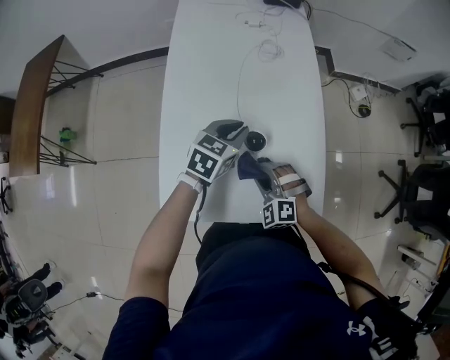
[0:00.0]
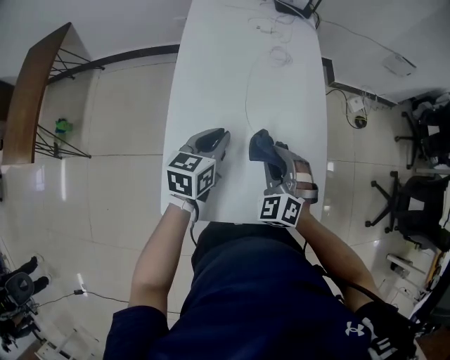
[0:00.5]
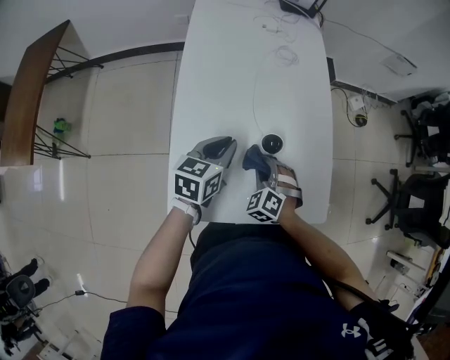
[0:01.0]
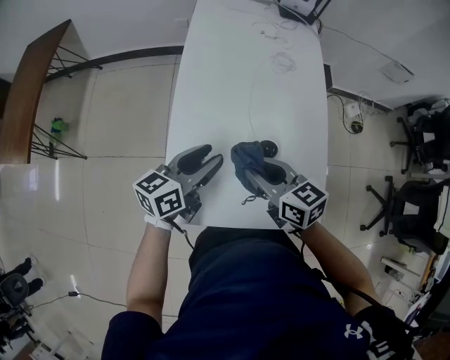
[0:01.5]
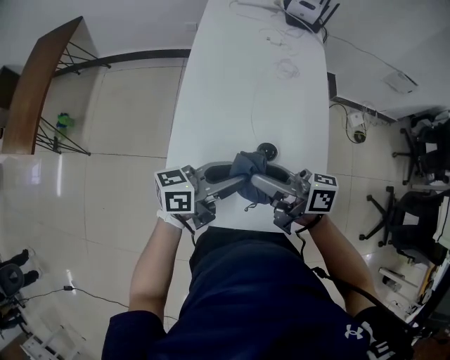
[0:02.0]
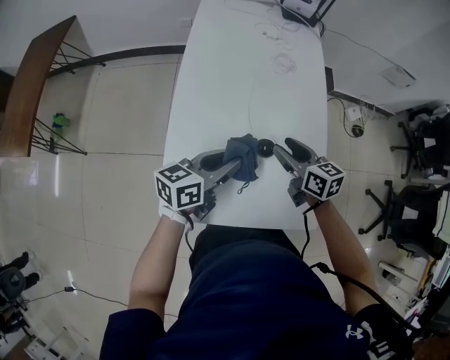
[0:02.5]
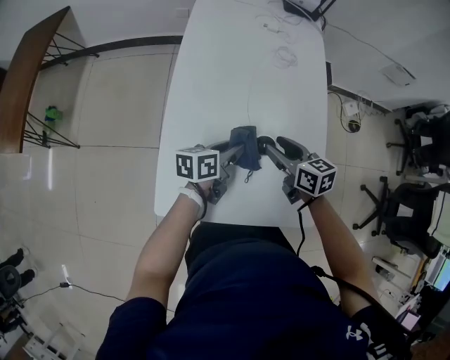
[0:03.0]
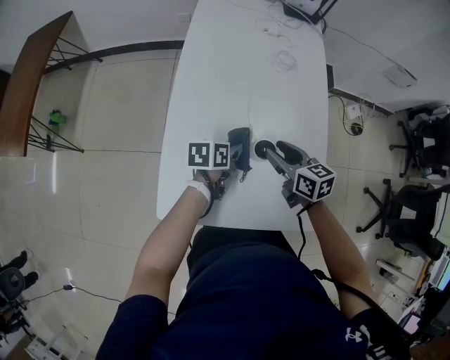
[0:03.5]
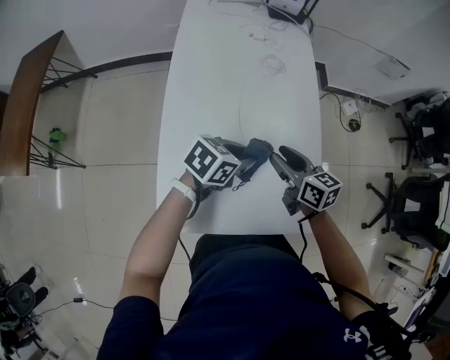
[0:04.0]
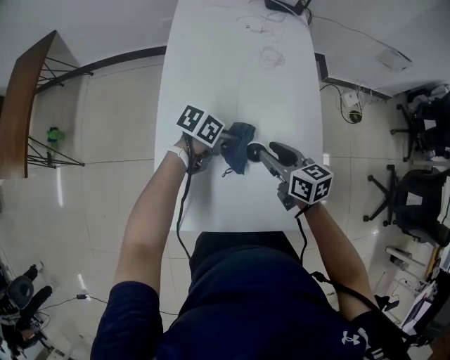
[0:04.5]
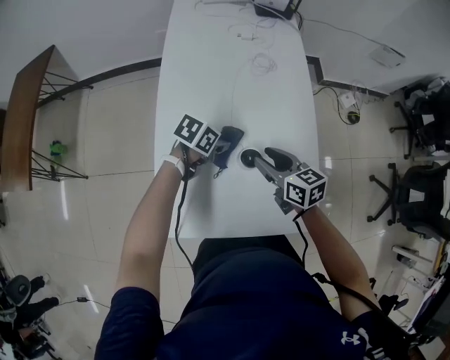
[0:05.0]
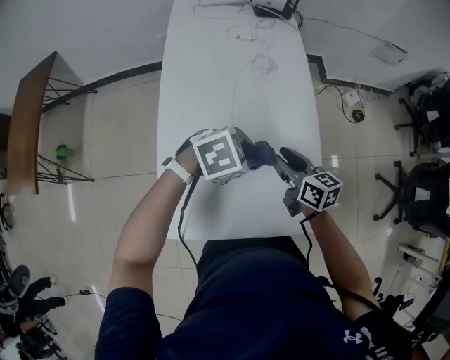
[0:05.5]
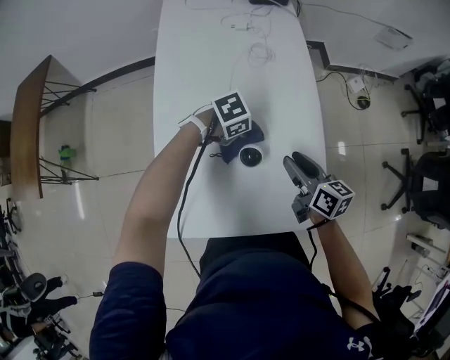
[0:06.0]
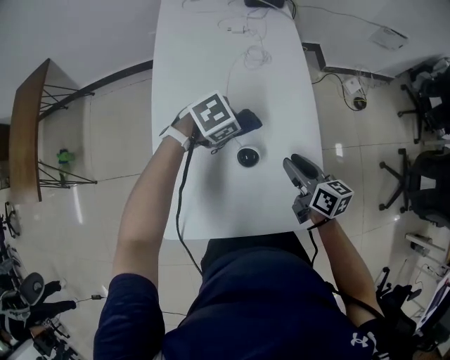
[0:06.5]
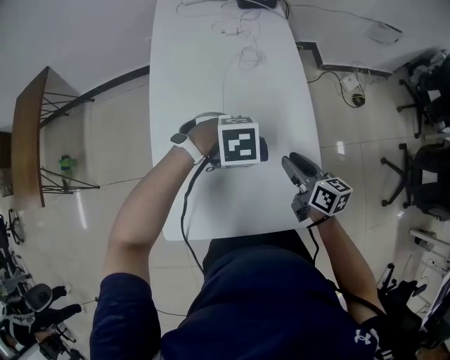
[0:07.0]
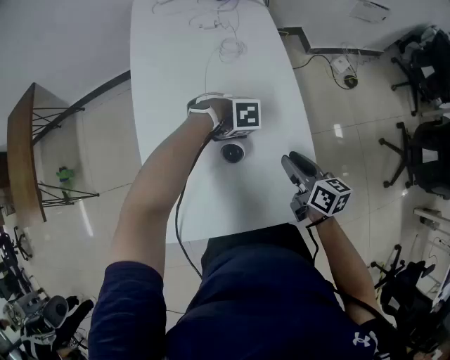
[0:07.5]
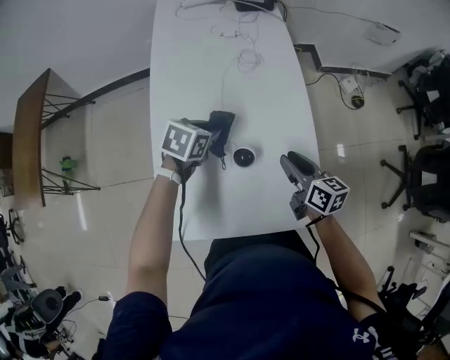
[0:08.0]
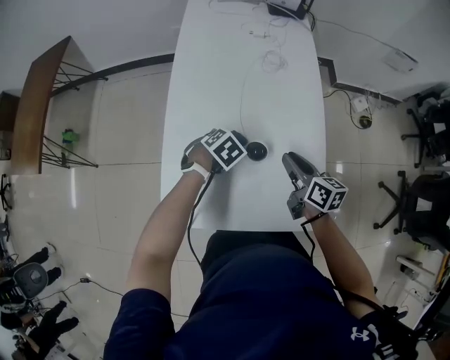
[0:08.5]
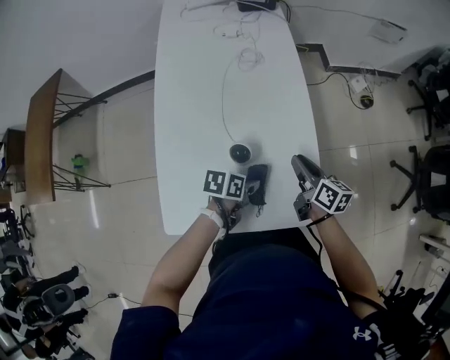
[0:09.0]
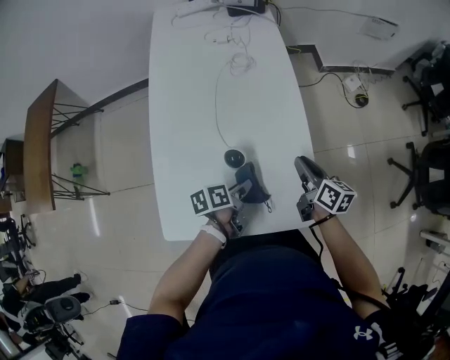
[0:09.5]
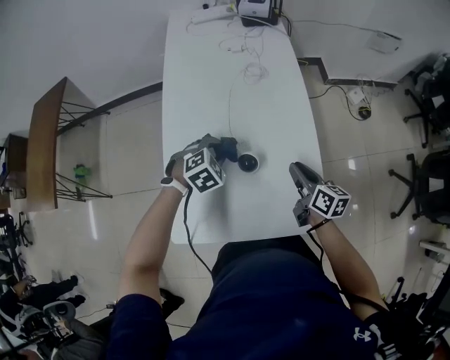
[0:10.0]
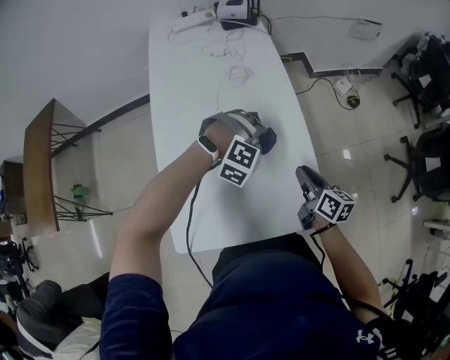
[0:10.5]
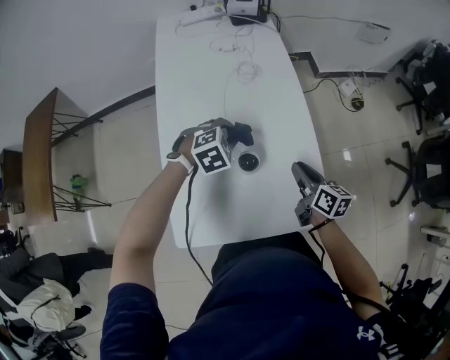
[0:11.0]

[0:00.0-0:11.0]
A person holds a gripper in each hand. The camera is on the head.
0:00.0 to 0:02.0: The left gripper moves some 15 cm, and points its fingers about 40 degrees further upward, while the right gripper moves up and down over roughly 20 cm, changing direction 2 times, twists about 90 degrees clockwise, seen from behind, and opens.
0:02.0 to 0:03.5: Both grippers travel together downward, some 15 cm. The left gripper points its fingers about 40 degrees further downward. The right gripper tilts its fingers about 30 degrees downward.
0:03.5 to 0:05.5: The right gripper ends up some 5 cm from where it was; the left gripper goes up and down, about 10 cm each way, reversing 2 times, and twists roughly 70 degrees clockwise, seen from behind.
0:05.5 to 0:07.5: The right gripper changes place by about 10 cm. The left gripper swings up and down, some 15 cm each way, with 2 reversals, and swivels some 40 degrees.
0:07.5 to 0:09.0: The left gripper moves some 10 cm upward and comes back, and rotates around the line of its fingers by about 80 degrees, counterclockwise from behind.
0:09.0 to 0:11.0: The left gripper heads forward, to the left and upward, covering roughly 20 cm, and rolls clockwise, seen from behind, by about 80 degrees.

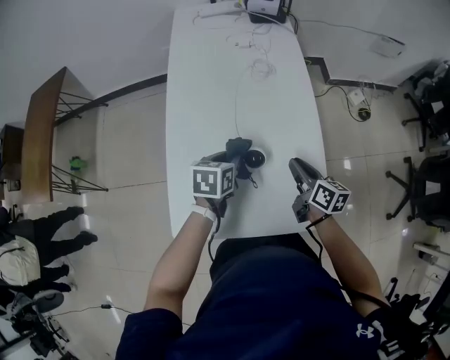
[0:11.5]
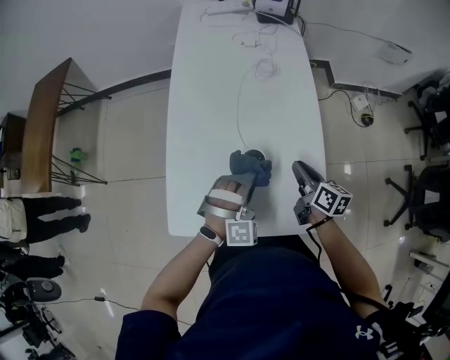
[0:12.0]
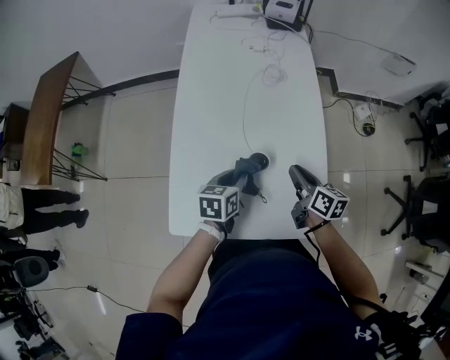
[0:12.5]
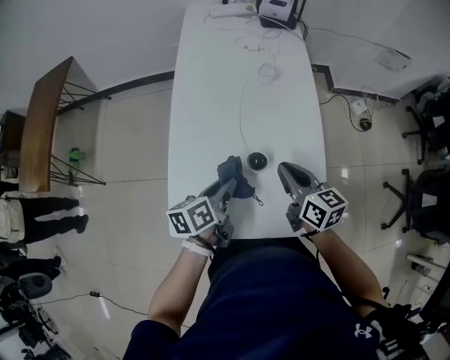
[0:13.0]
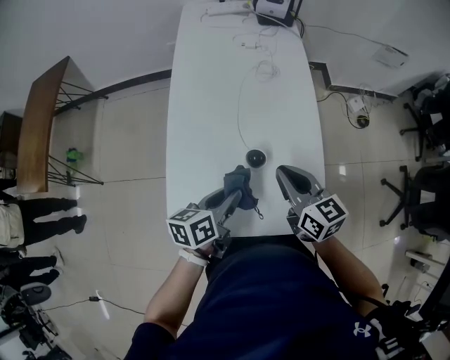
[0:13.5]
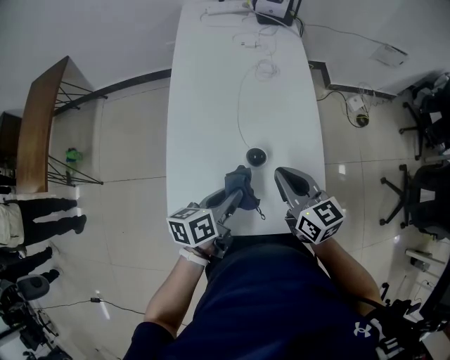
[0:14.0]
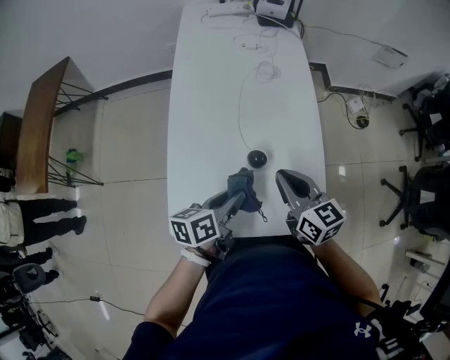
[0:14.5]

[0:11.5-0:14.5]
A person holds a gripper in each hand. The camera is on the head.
0:11.5 to 0:13.0: The right gripper goes approximately 10 cm upward and to the left; the left gripper heads backward, covering approximately 5 cm, and swivels approximately 40 degrees.
0:13.0 to 0:14.5: The grippers stay close to where they were, moving slightly.

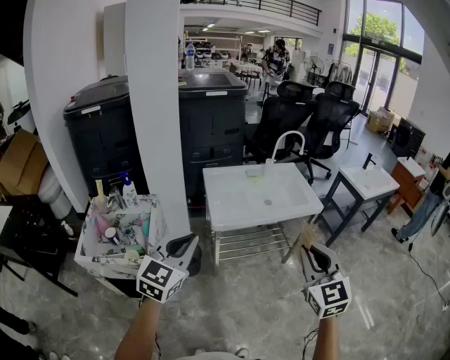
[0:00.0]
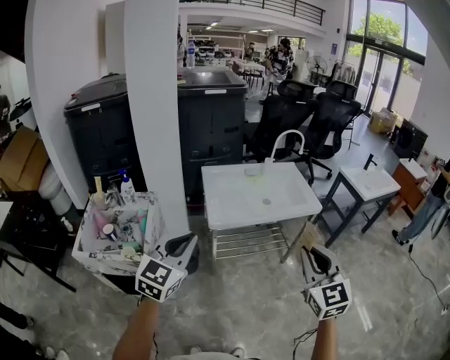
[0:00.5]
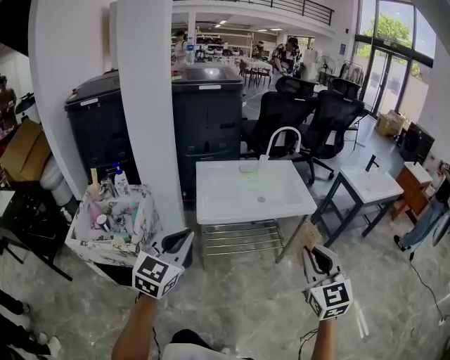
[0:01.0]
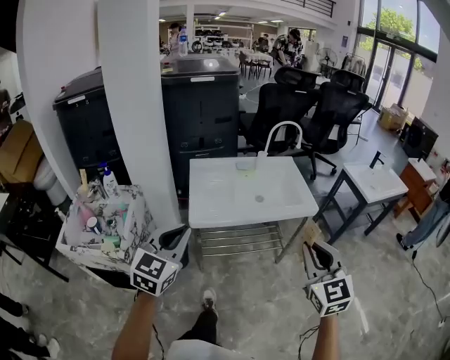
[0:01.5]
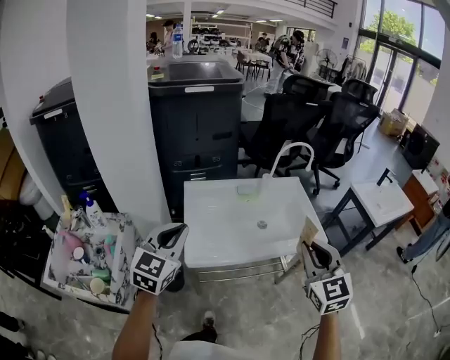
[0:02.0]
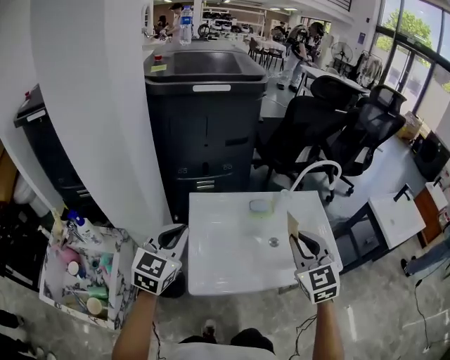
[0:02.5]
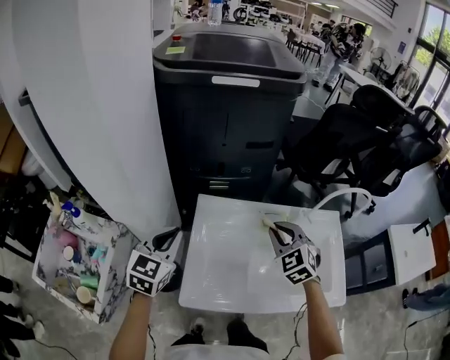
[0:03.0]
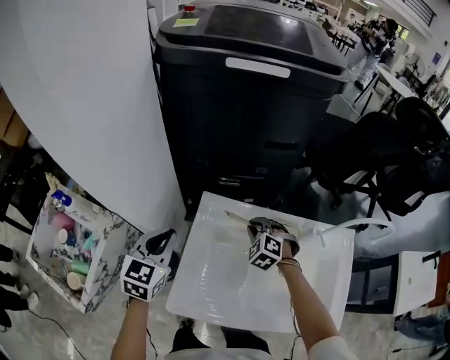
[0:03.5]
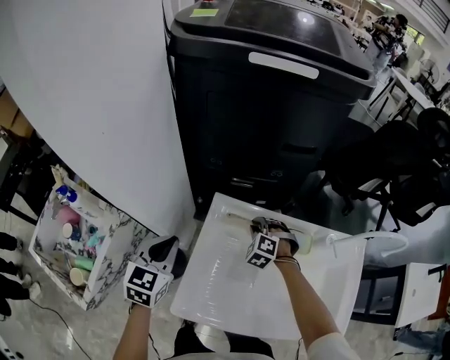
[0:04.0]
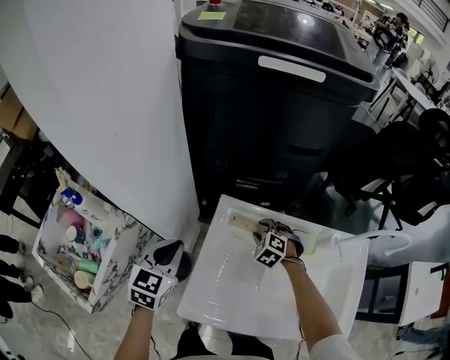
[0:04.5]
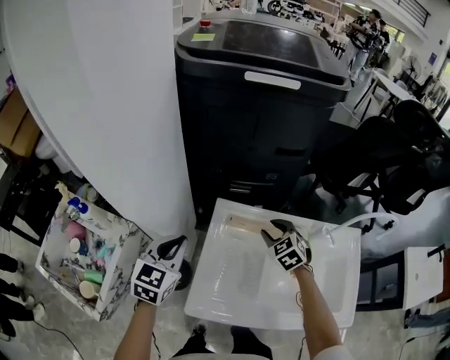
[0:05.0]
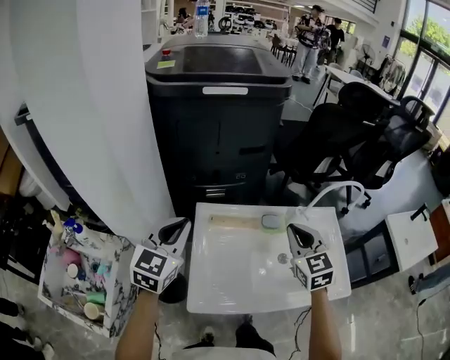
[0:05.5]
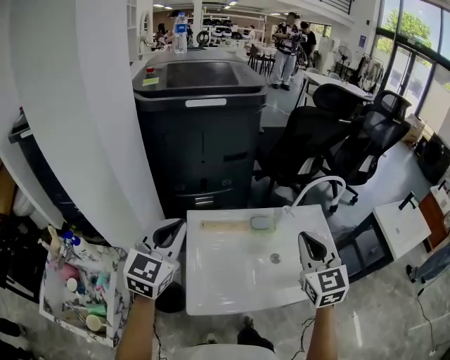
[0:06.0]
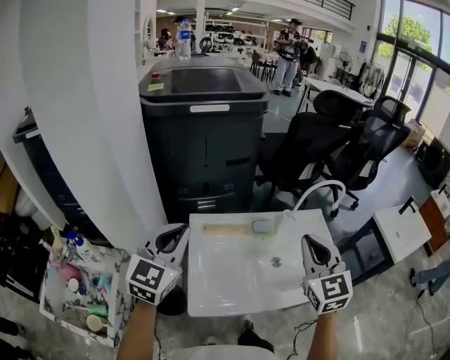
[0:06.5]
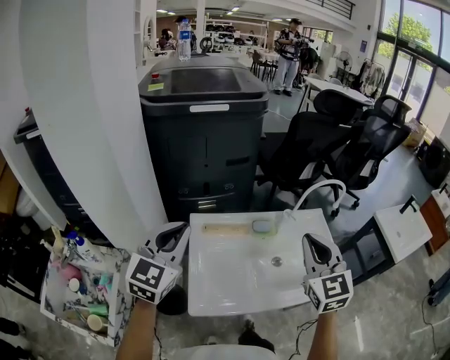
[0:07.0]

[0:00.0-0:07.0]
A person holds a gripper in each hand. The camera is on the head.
0:00.0 to 0:02.0: The grippers both shift forward by approximately 30 cm.
0:02.0 to 0:03.5: The left gripper moves forward and downward, roughly 30 cm, and swivels some 30 degrees. The right gripper travels forward and downward by some 60 cm, and angles its fingers downward, by some 40 degrees.
0:03.5 to 0:05.0: The right gripper swivels about 20 degrees, and opens its fingers.
0:05.0 to 0:07.0: The right gripper is displaced upward, backward and to the right by approximately 40 cm, tilts its fingers some 40 degrees upward, and closes. The left gripper moves upward and to the right, roughly 20 cm, and turns by some 30 degrees.

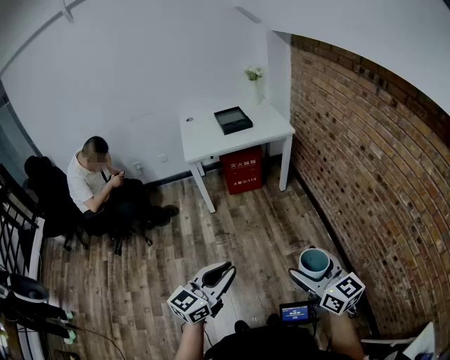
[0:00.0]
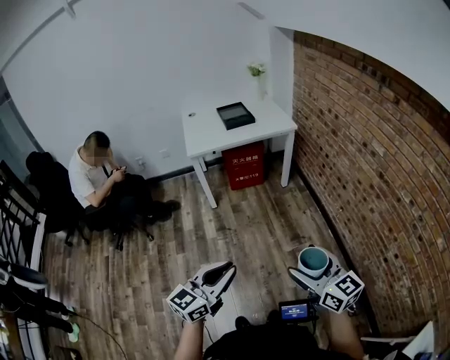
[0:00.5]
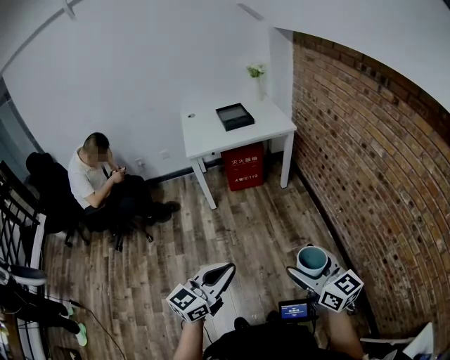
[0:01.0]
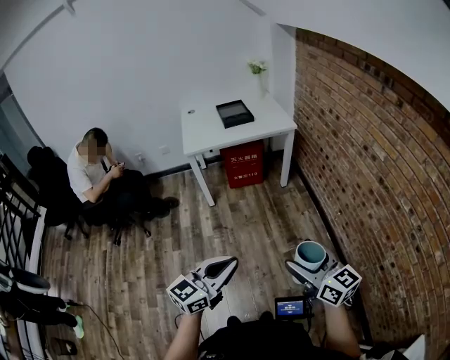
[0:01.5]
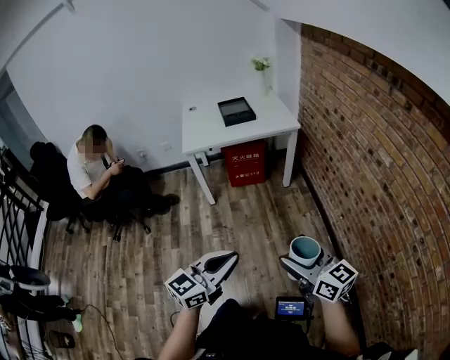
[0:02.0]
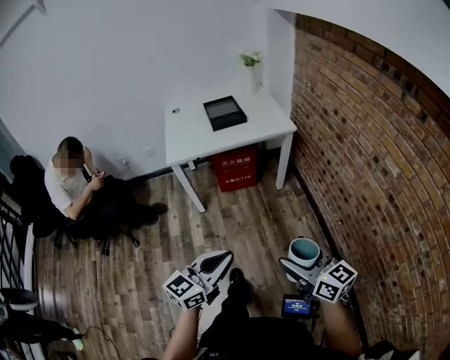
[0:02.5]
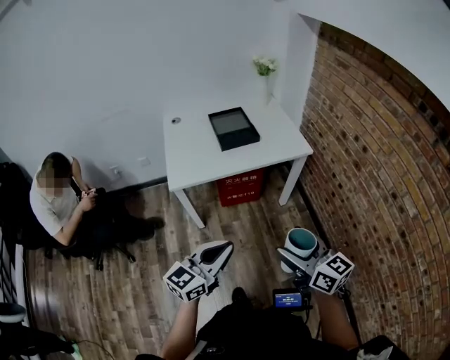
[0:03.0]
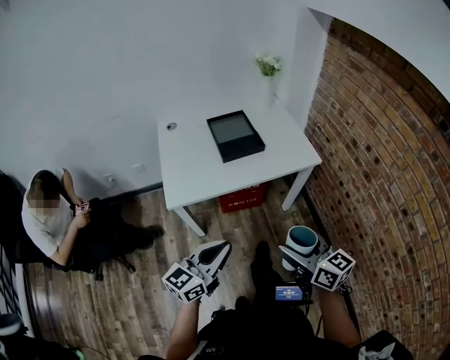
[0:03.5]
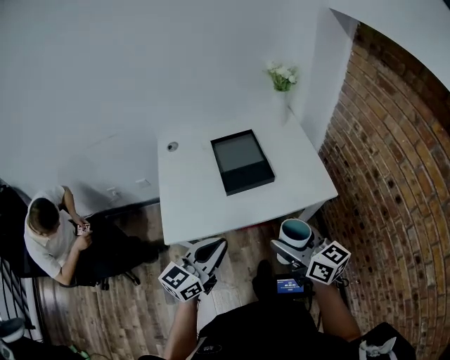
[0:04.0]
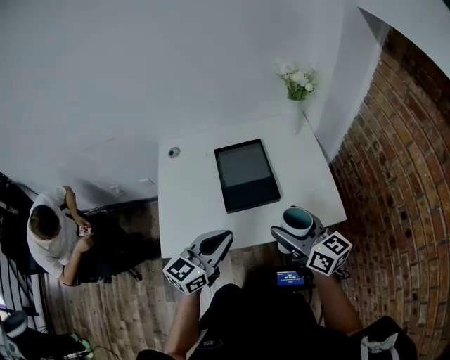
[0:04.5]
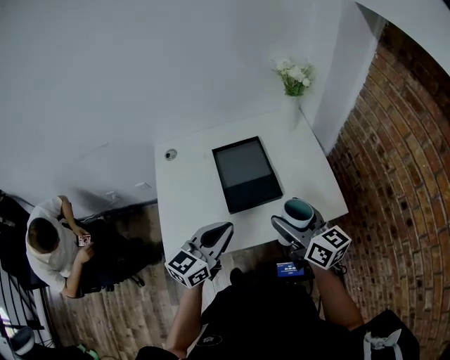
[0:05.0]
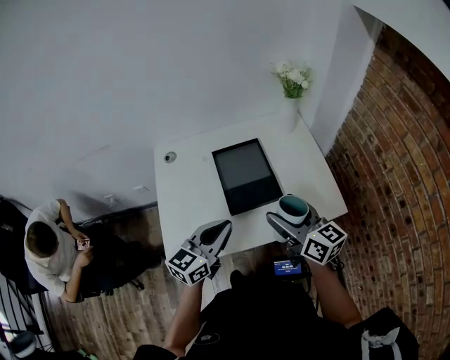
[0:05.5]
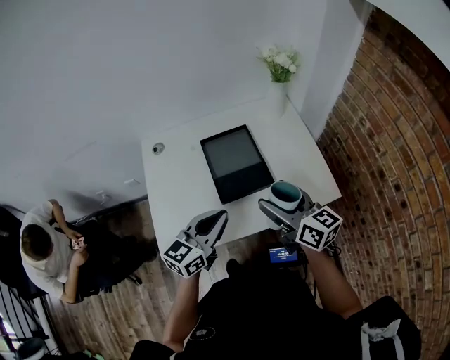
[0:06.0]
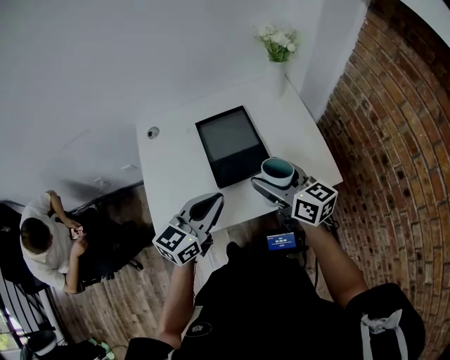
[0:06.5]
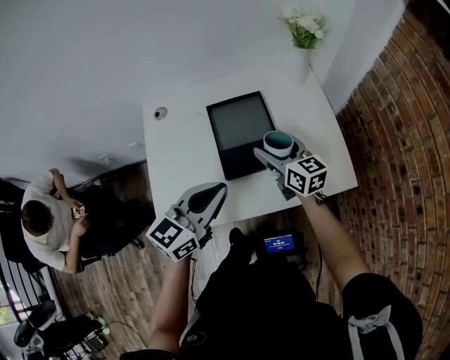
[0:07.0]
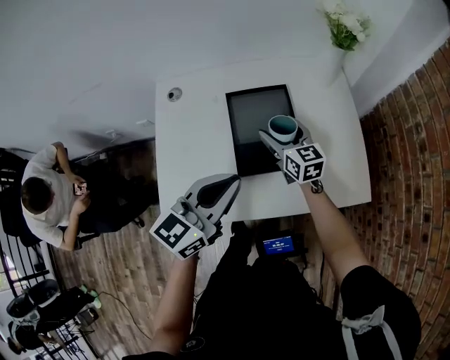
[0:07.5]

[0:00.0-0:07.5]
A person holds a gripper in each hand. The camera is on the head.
0:00.0 to 0:02.0: The left gripper is displaced to the right and forward by about 10 cm, while the right gripper travels forward by some 10 cm.
0:02.0 to 0:04.0: The pair of grippers is taken forward, roughly 70 cm.
0:04.0 to 0:05.5: The grippers both shift forward by some 15 cm.
0:05.5 to 0:07.5: The right gripper is displaced forward and downward by roughly 25 cm. Meanwhile the left gripper travels forward by some 5 cm.
